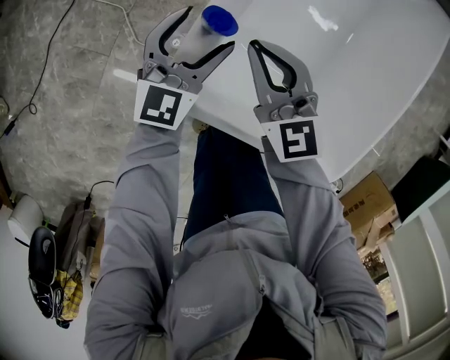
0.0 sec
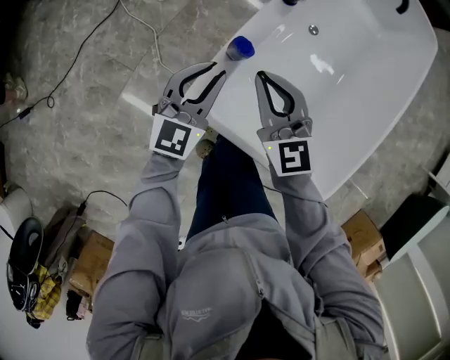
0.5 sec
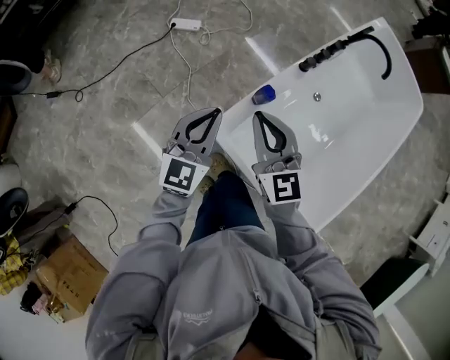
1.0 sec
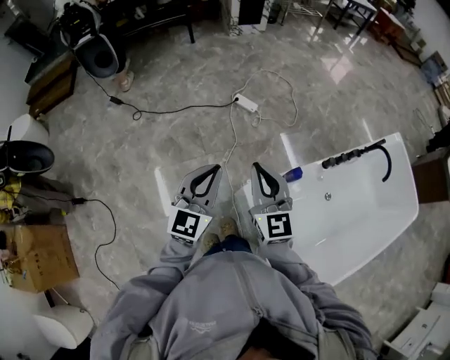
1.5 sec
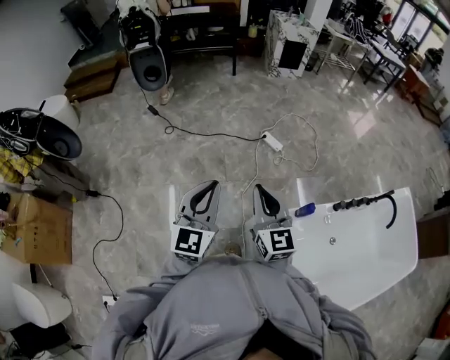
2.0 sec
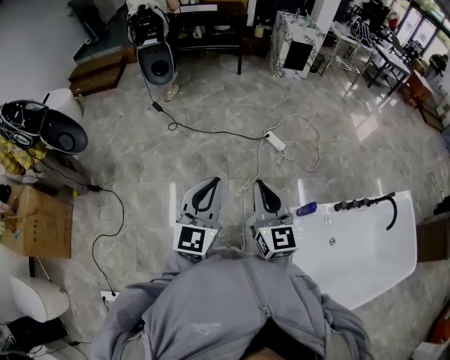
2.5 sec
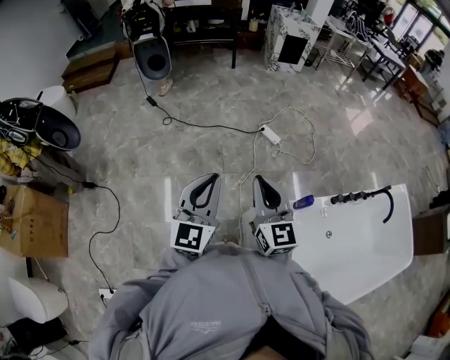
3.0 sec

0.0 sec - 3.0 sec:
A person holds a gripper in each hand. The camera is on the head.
0.0 sec - 1.5 sec: The grippers both shift upward by some 35 cm. The right gripper swivels approximately 30 degrees. Meanwhile the left gripper swivels approximately 50 degrees, and closes its fingers.
1.5 sec - 3.0 sec: Both grippers travel together to the left and upward, approximately 10 cm.

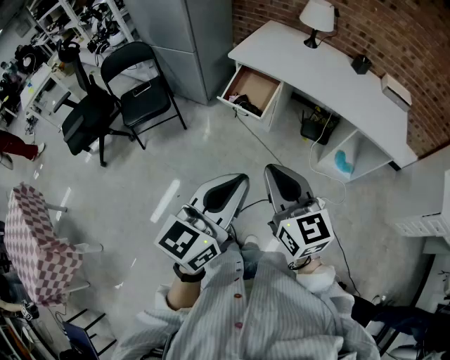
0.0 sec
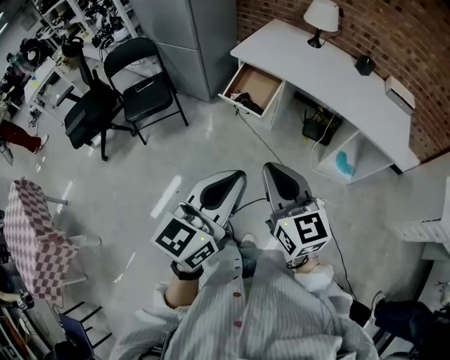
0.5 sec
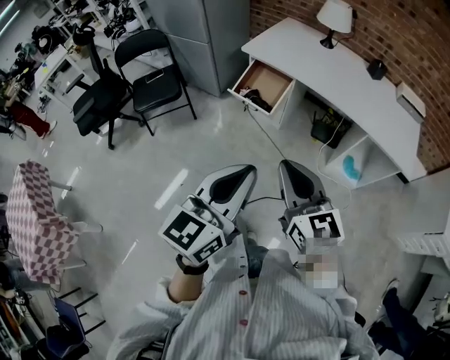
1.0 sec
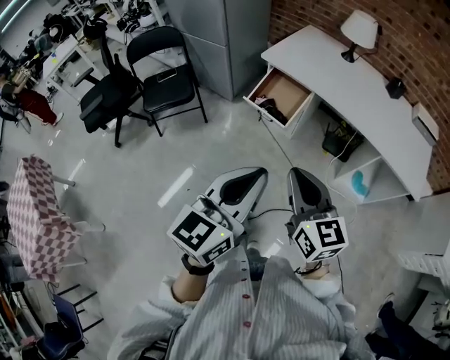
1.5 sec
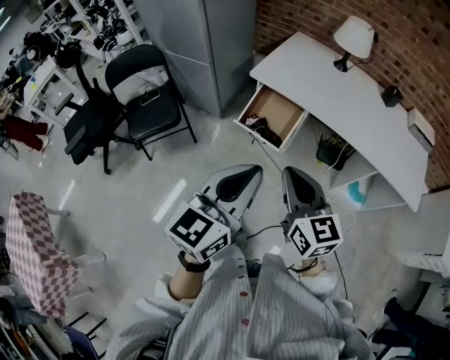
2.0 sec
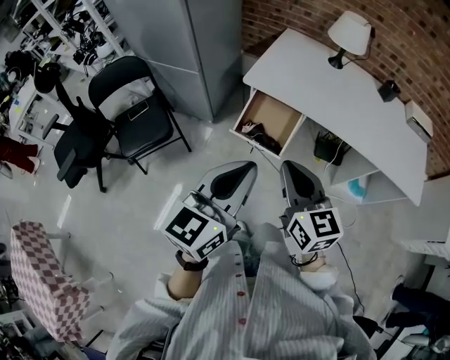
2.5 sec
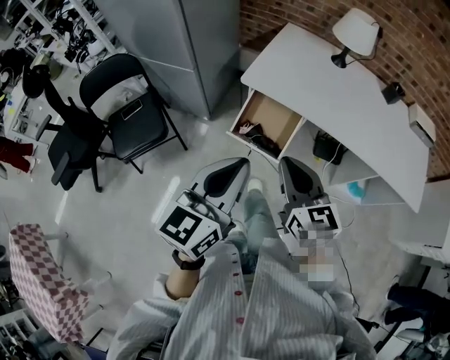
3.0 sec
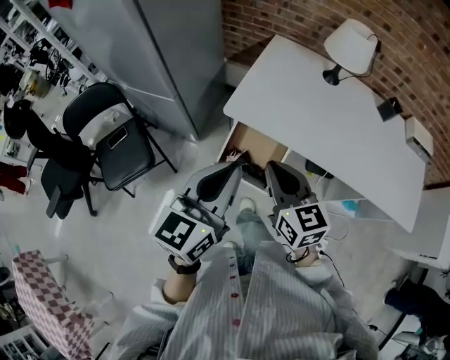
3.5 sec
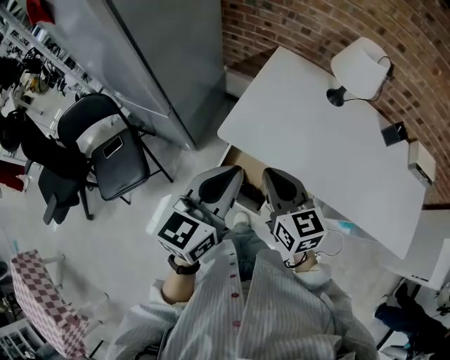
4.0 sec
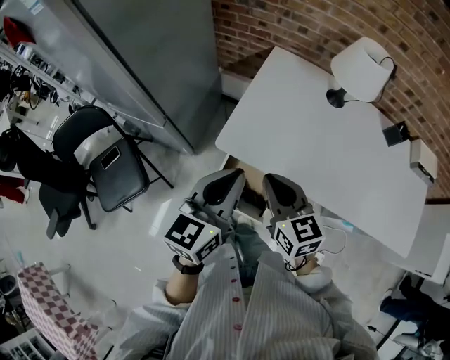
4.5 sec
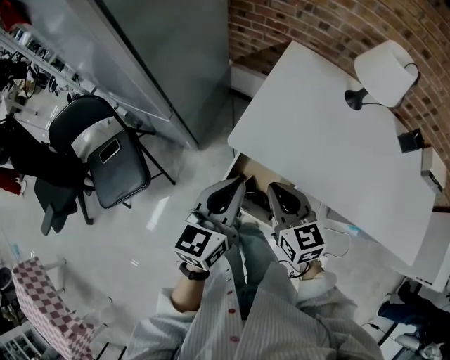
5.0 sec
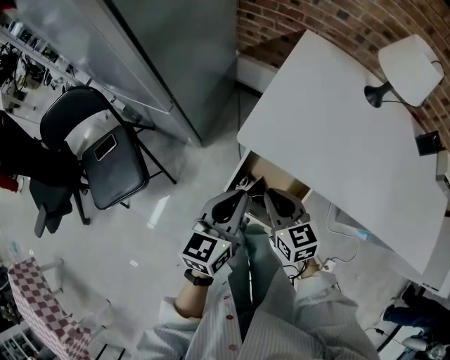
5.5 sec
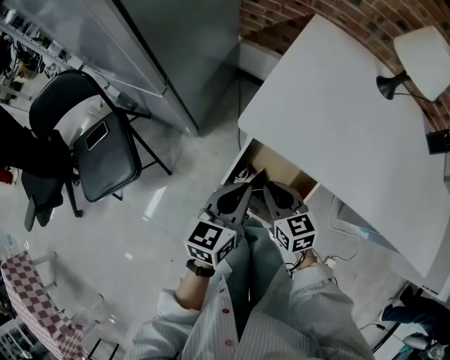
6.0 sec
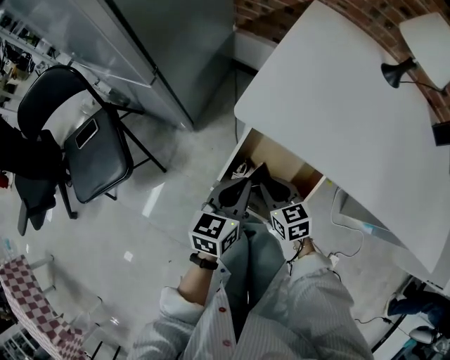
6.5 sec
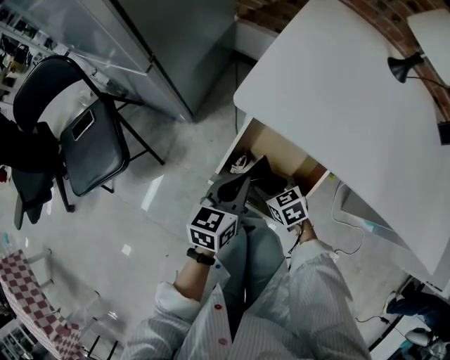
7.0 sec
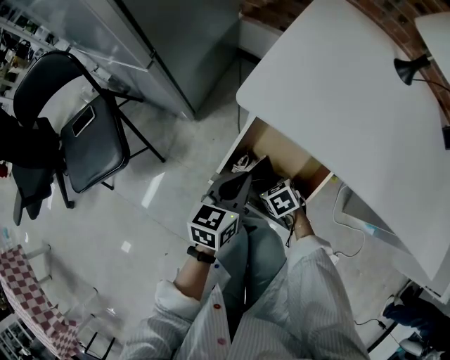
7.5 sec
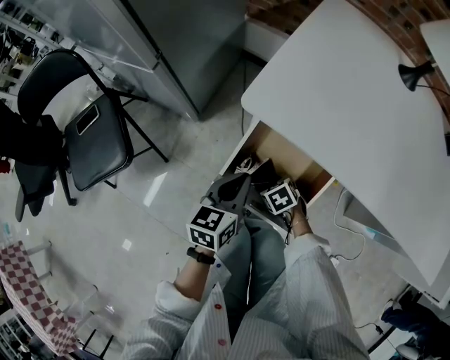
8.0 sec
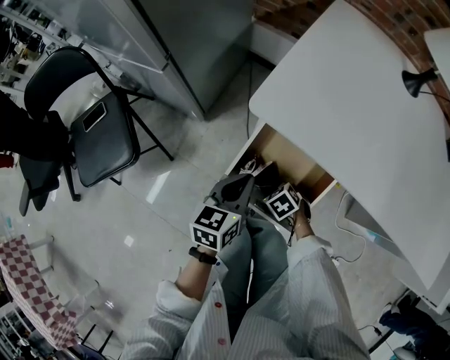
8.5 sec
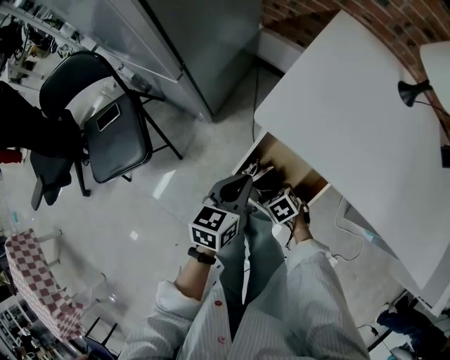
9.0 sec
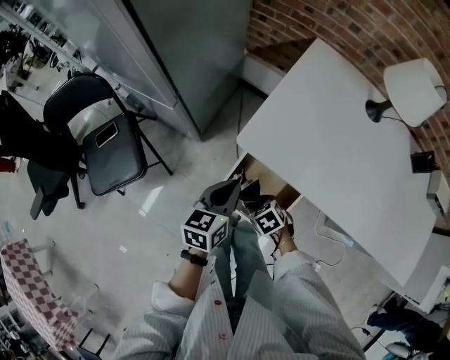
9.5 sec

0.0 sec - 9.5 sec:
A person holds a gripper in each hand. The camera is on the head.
0.0 sec - 2.0 sec: Both grippers travel together forward, approximately 20 cm.
2.0 sec - 4.0 sec: Both grippers travel together forward, some 40 cm.
4.0 sec - 5.5 sec: The two grippers go roughly 25 cm downward.
5.5 sec - 7.5 sec: The right gripper is displaced downward by about 30 cm, angles its fingers downward, by about 40 degrees, and opens up. The left gripper moves downward, about 20 cm.
7.5 sec - 9.5 sec: Both grippers travel together upward, some 15 cm.

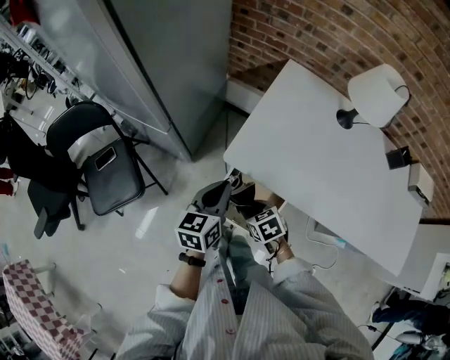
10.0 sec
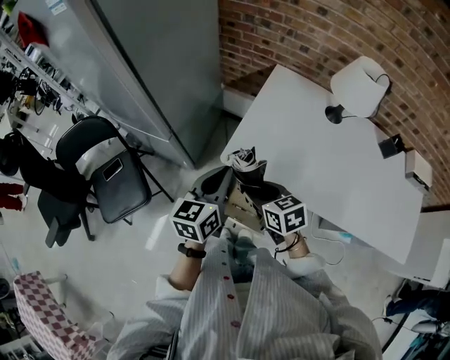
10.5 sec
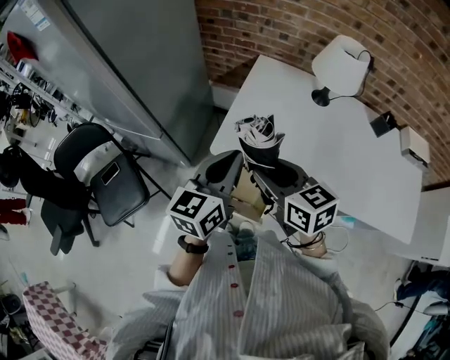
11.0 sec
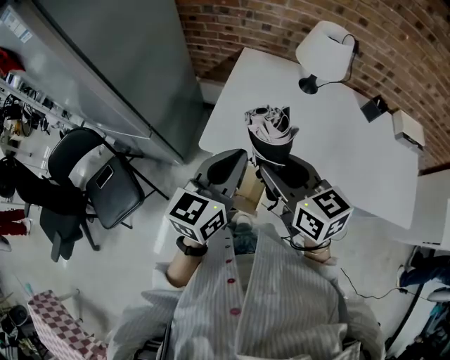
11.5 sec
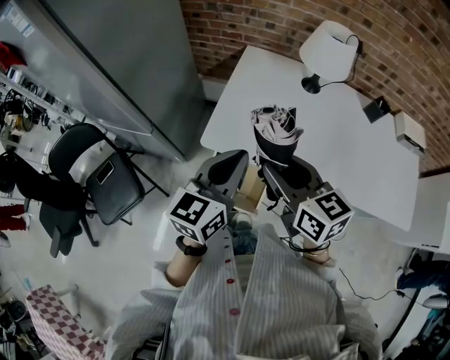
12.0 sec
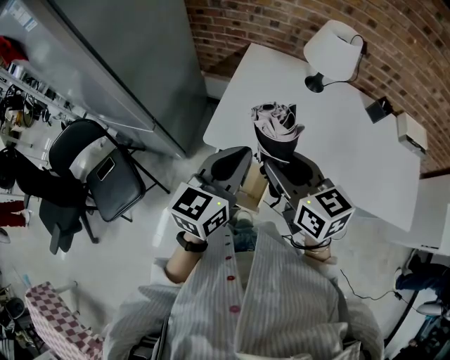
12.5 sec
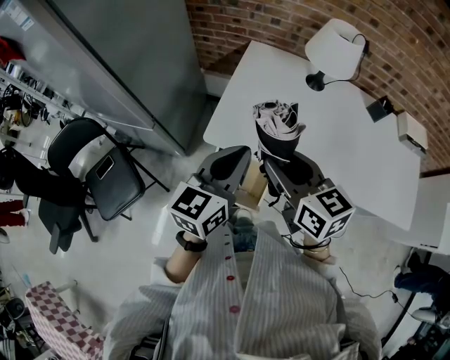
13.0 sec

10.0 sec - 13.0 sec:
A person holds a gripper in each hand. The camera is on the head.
10.0 sec - 11.5 sec: The left gripper goes approximately 25 cm upward and to the right, and changes its angle by approximately 30 degrees. The right gripper shifts about 35 cm upward, and tilts its fingers some 40 degrees upward.
11.5 sec - 13.0 sec: The grippers stay close to where they were, moving slightly.

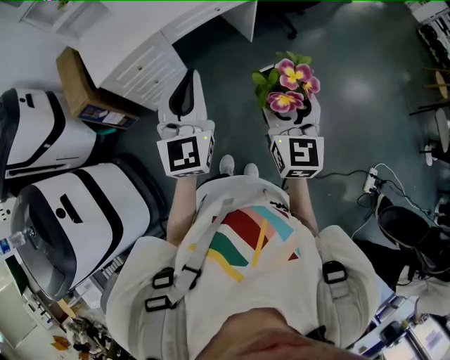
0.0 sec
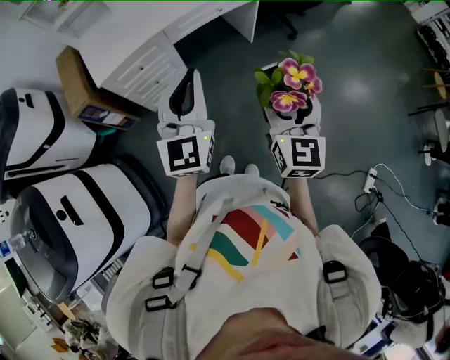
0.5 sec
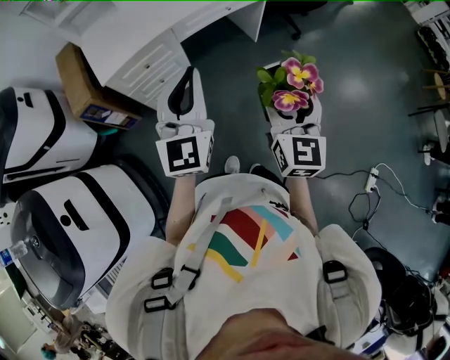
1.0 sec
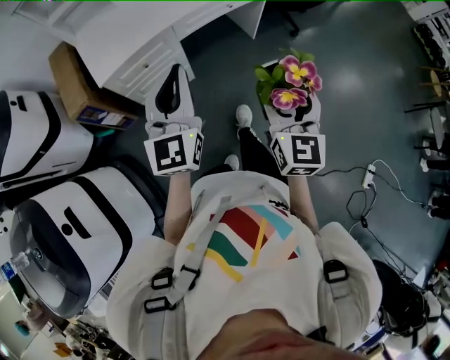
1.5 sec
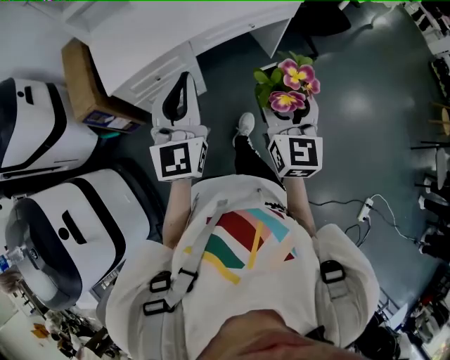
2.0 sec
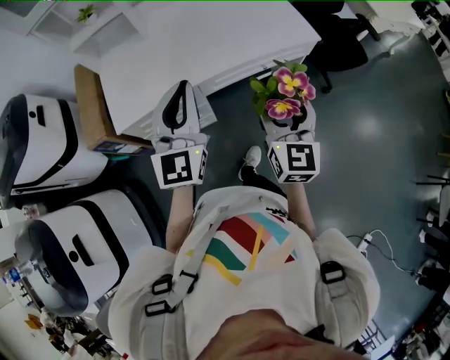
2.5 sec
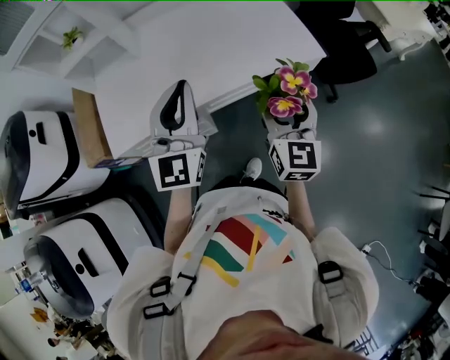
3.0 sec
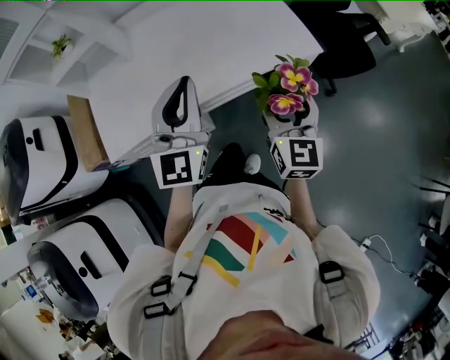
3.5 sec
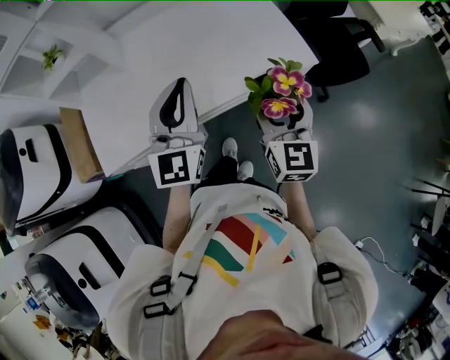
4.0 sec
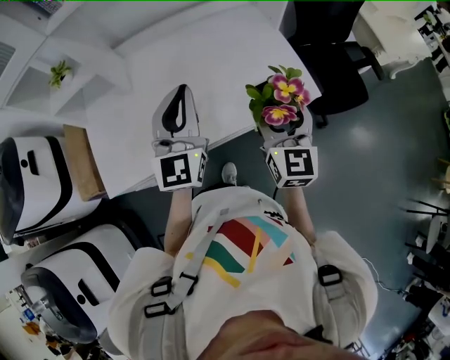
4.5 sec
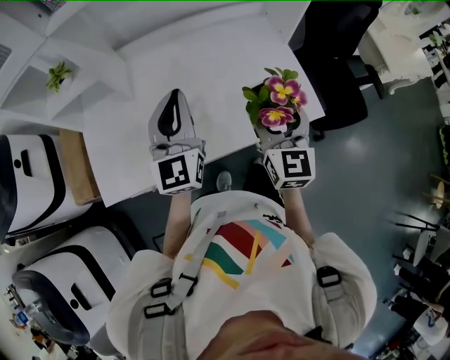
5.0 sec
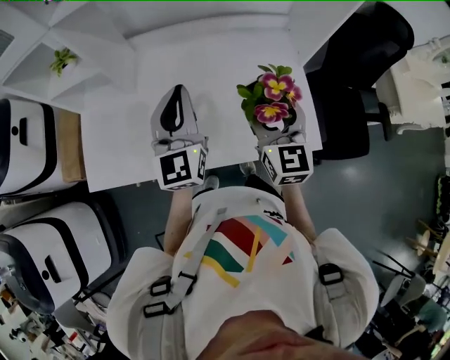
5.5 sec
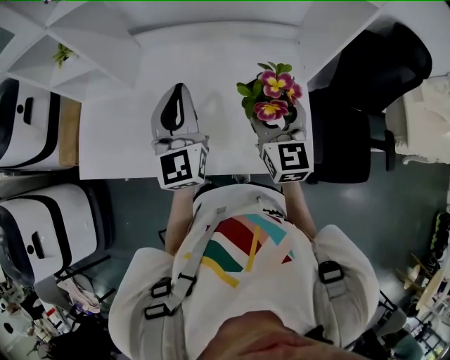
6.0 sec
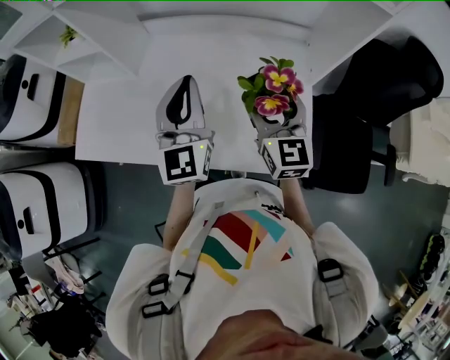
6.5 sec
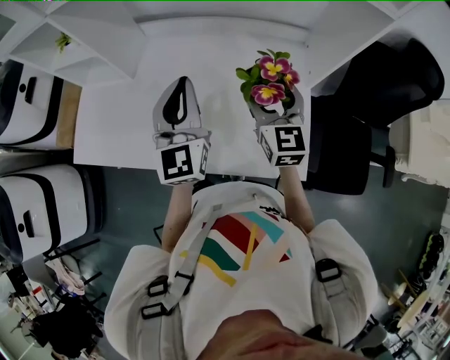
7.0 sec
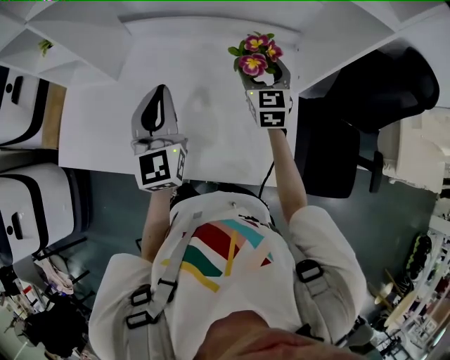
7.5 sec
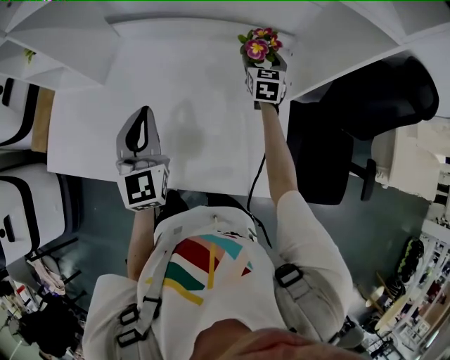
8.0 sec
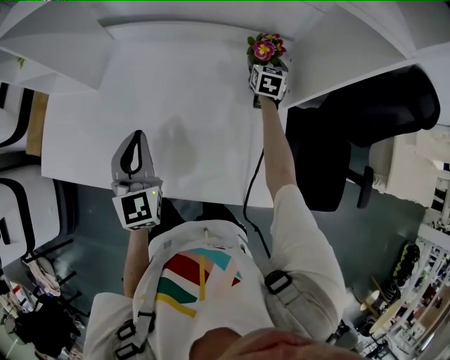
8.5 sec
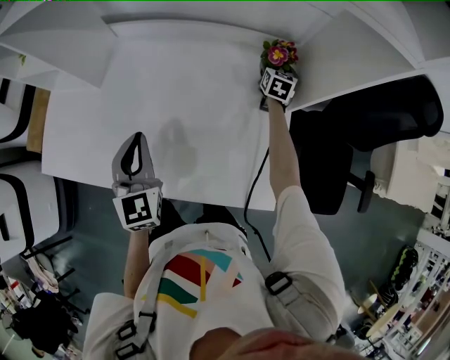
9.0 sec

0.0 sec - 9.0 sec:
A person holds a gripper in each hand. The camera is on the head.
0.0 sec - 2.0 sec: The two grippers go some 20 cm forward and to the left.
2.0 sec - 4.5 sec: Both grippers are carried forward, about 40 cm.
4.5 sec - 7.0 sec: The right gripper changes place by about 25 cm, and changes its angle by some 30 degrees, while the left gripper moves approximately 15 cm, and changes its angle by about 30 degrees.
7.0 sec - 9.0 sec: The left gripper shifts roughly 10 cm downward, and swivels about 20 degrees, while the right gripper is displaced forward, downward and to the right by approximately 40 cm, and swivels roughly 30 degrees.

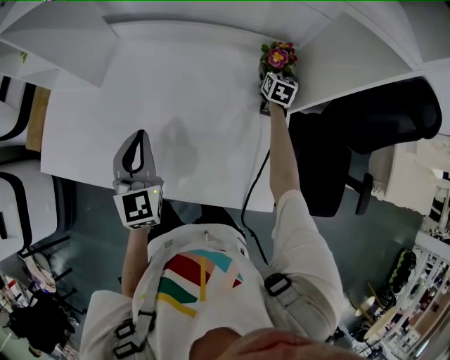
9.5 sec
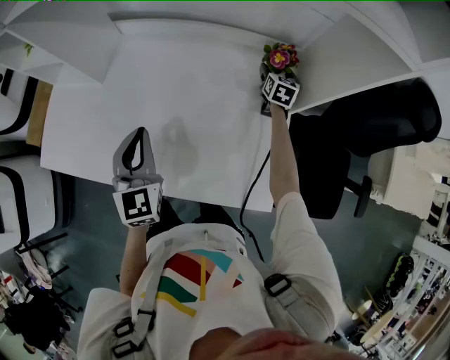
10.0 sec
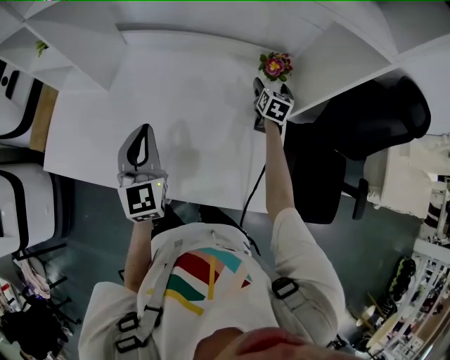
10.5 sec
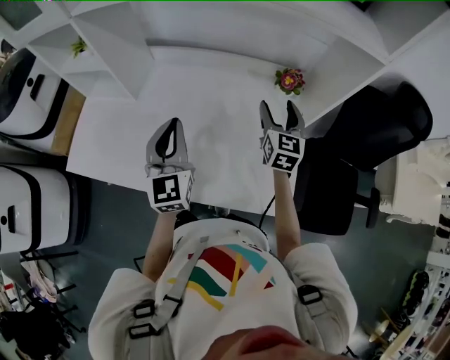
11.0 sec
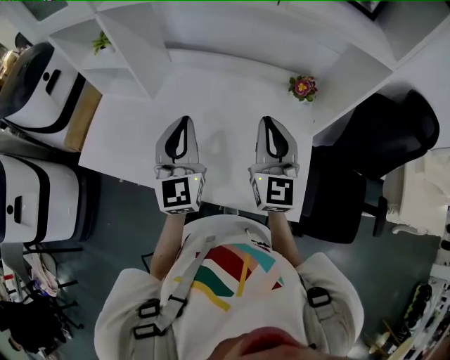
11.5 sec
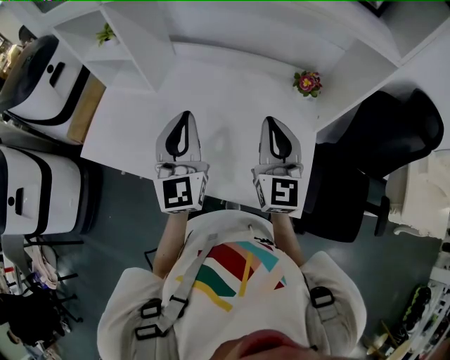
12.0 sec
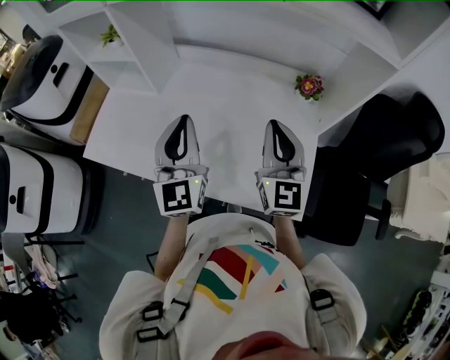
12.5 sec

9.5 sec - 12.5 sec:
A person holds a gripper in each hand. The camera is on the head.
9.5 sec - 11.0 sec: The right gripper travels upward, backward and to the left by roughly 30 cm, and swivels roughly 20 degrees, while the left gripper is displaced upward by roughly 5 cm.
11.0 sec - 12.5 sec: The right gripper is displaced backward, to the left and upward by roughly 20 cm, swivels about 20 degrees, and closes up, while the left gripper moves upward, some 5 cm.
